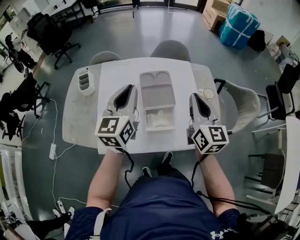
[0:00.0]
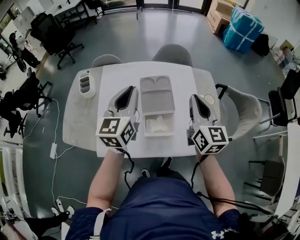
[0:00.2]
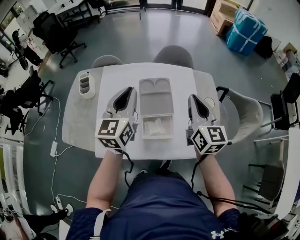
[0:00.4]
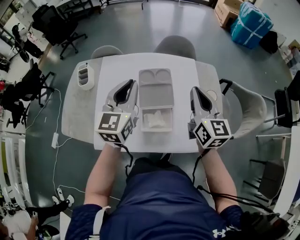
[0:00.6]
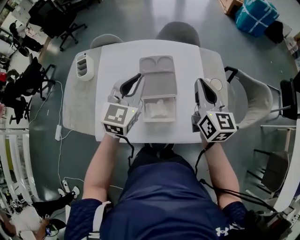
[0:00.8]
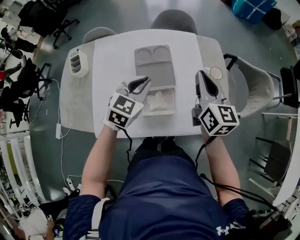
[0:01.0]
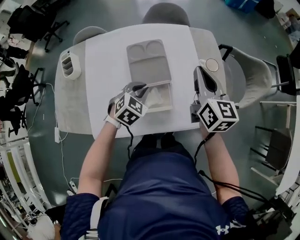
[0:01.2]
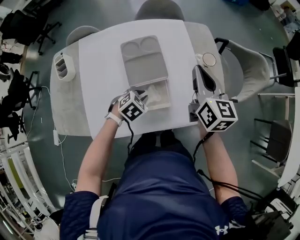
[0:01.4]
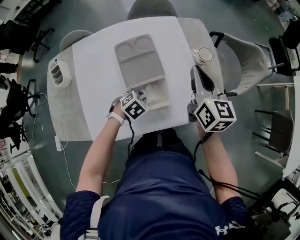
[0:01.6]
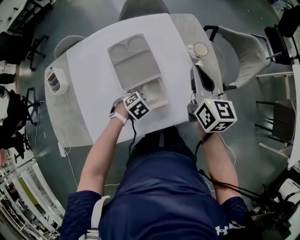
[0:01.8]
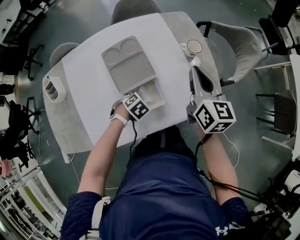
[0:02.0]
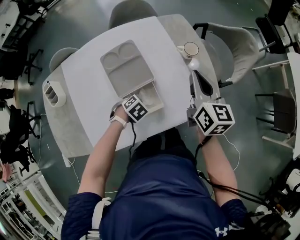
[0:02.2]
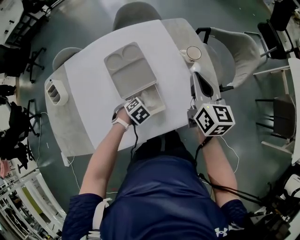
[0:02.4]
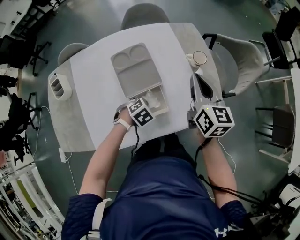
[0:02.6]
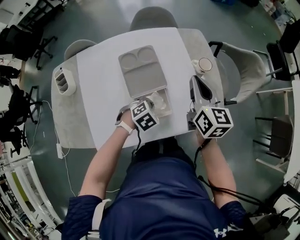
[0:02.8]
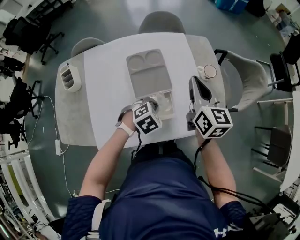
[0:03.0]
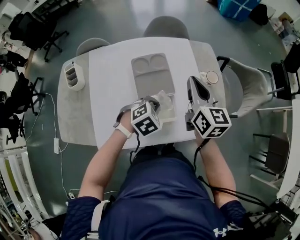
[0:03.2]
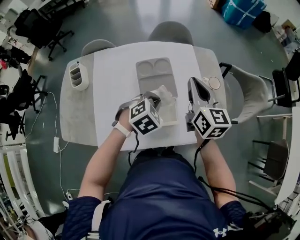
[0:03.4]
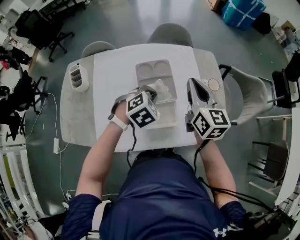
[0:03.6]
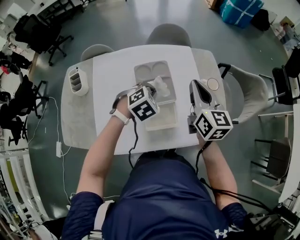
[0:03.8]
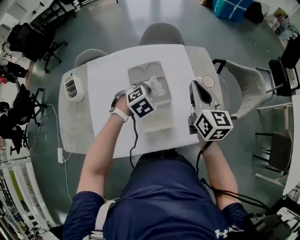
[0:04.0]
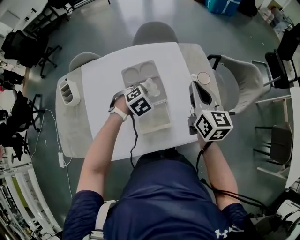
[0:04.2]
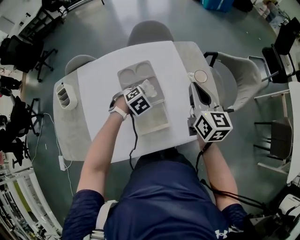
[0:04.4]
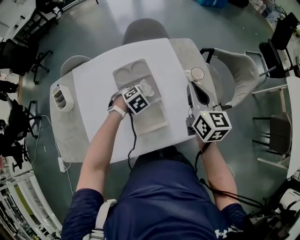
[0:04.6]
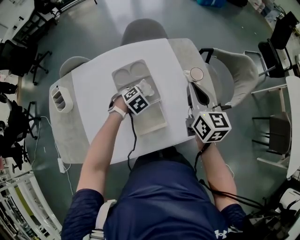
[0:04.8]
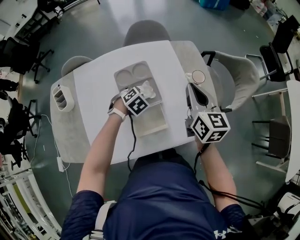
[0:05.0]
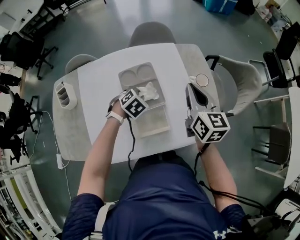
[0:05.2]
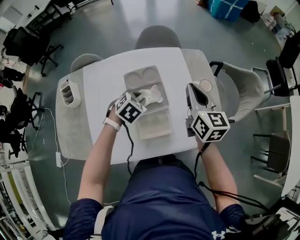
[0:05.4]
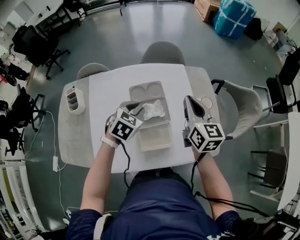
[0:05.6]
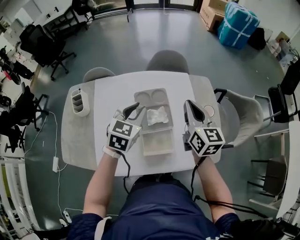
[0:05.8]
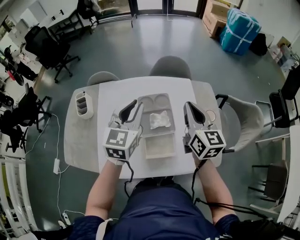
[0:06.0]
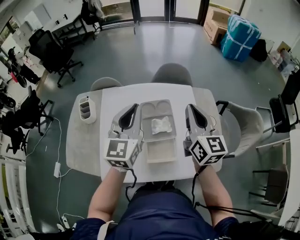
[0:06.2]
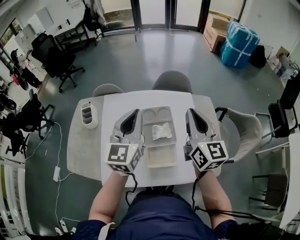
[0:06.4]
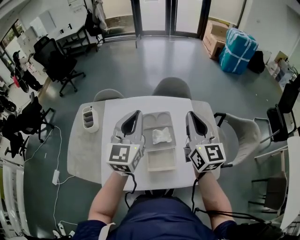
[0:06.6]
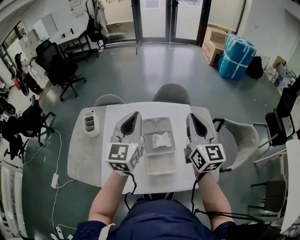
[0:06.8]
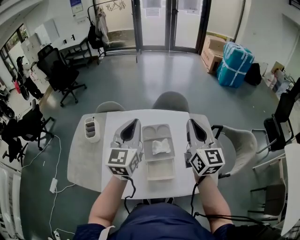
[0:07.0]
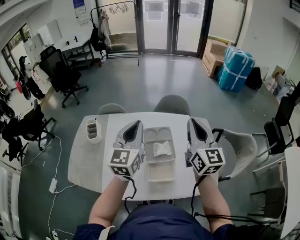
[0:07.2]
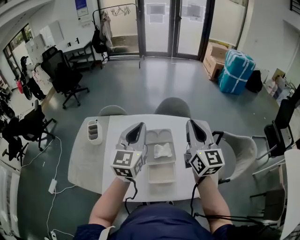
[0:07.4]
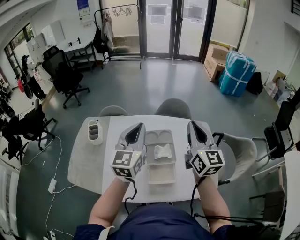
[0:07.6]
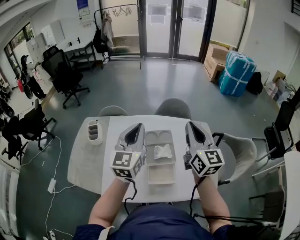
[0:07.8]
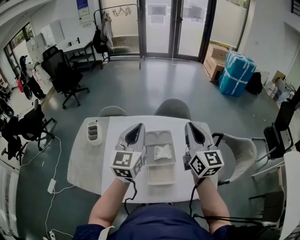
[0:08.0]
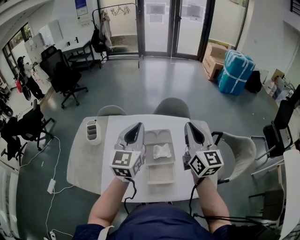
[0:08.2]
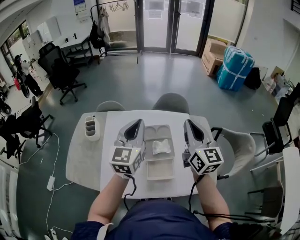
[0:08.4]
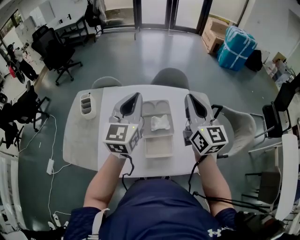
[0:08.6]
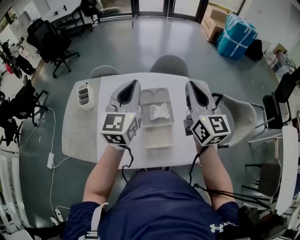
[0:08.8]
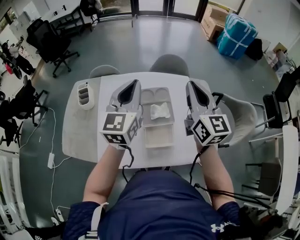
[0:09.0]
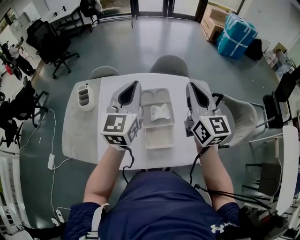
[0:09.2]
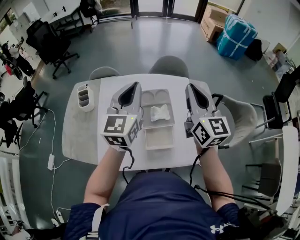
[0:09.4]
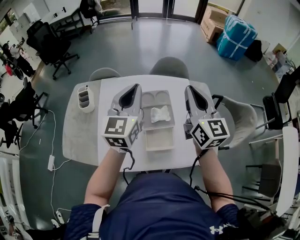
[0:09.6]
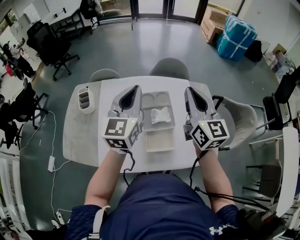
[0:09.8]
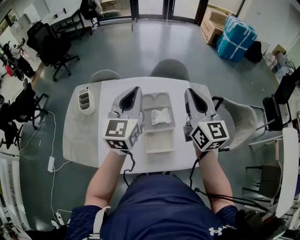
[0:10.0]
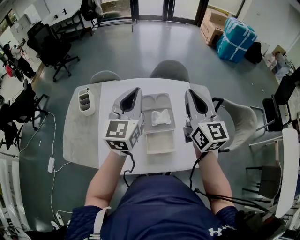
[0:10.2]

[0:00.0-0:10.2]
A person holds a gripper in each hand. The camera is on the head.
0:00.0 to 0:01.4: The right gripper shifts some 10 cm downward. Meanwhile the left gripper shifts about 35 cm downward, and angles its fingers downward, by approximately 60 degrees.
0:01.4 to 0:03.0: The left gripper changes place by approximately 5 cm.
0:03.0 to 0:04.4: The left gripper travels forward by some 10 cm, and reaches some 10 cm upward, then returns.
0:04.4 to 0:05.8: The right gripper moves to the left, roughly 10 cm, while the left gripper goes about 20 cm upward, angles its fingers upward, by about 40 degrees, and opens up.
0:05.8 to 0:07.2: The grippers both shift upward by about 15 cm. The left gripper tilts its fingers some 30 degrees upward, and closes its fingers.
0:07.2 to 0:10.2: The grippers move only a little.

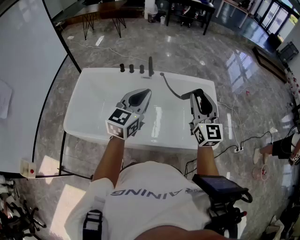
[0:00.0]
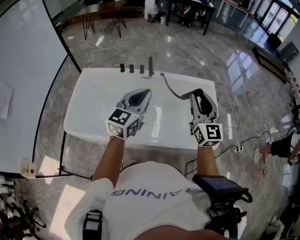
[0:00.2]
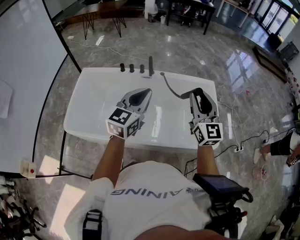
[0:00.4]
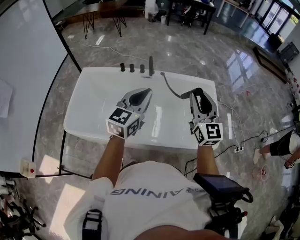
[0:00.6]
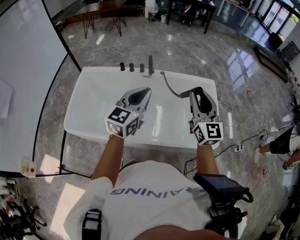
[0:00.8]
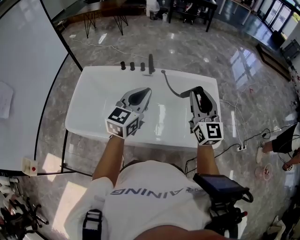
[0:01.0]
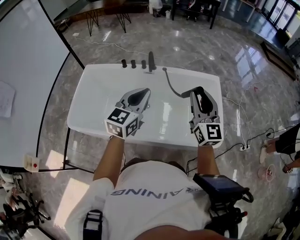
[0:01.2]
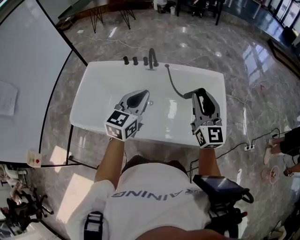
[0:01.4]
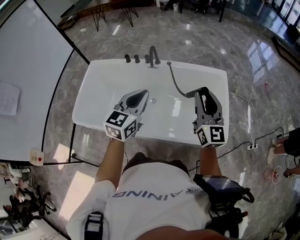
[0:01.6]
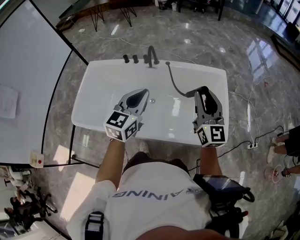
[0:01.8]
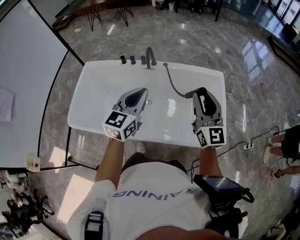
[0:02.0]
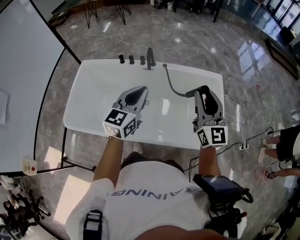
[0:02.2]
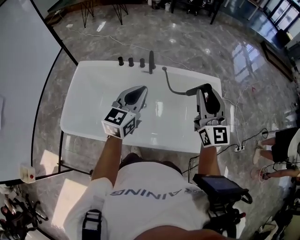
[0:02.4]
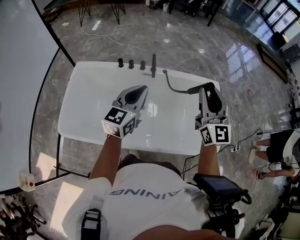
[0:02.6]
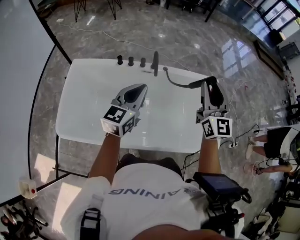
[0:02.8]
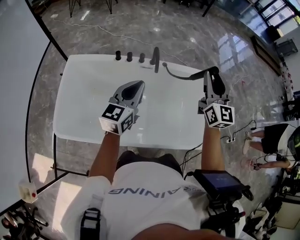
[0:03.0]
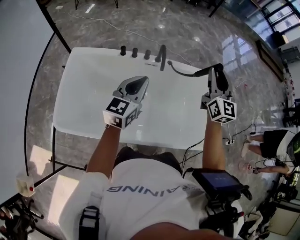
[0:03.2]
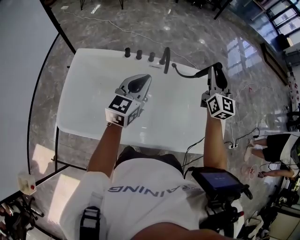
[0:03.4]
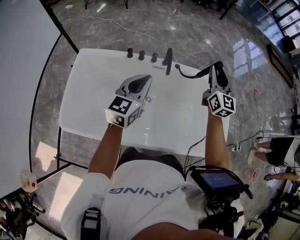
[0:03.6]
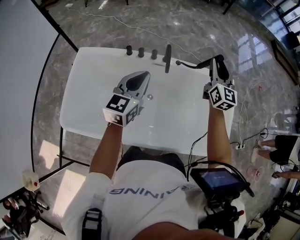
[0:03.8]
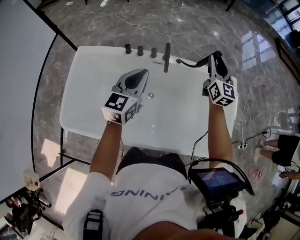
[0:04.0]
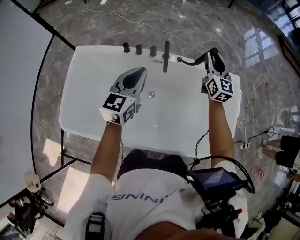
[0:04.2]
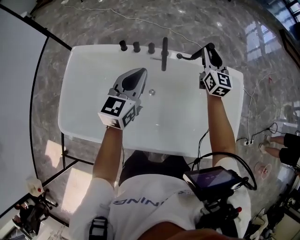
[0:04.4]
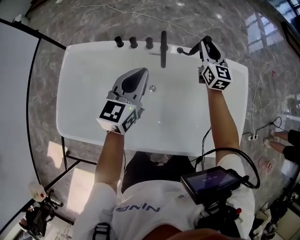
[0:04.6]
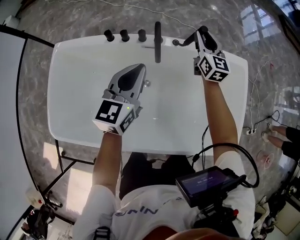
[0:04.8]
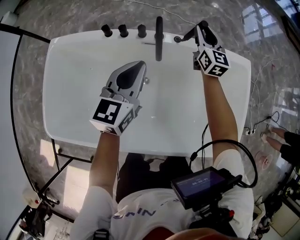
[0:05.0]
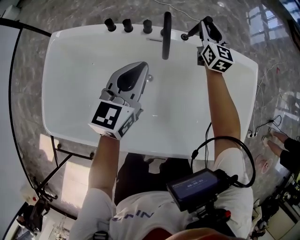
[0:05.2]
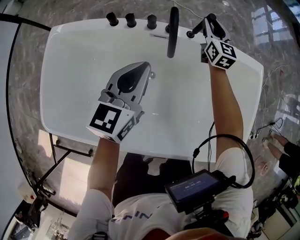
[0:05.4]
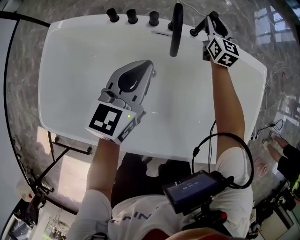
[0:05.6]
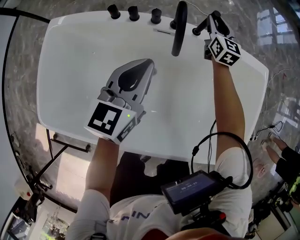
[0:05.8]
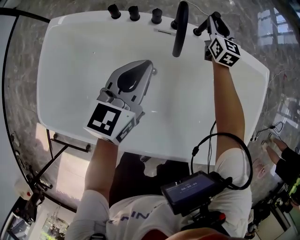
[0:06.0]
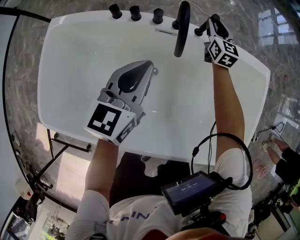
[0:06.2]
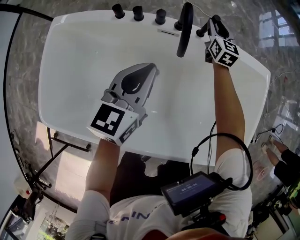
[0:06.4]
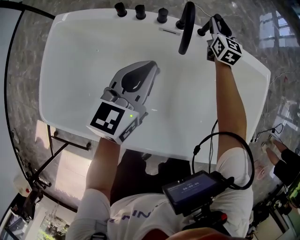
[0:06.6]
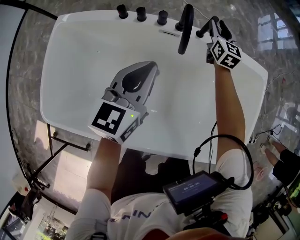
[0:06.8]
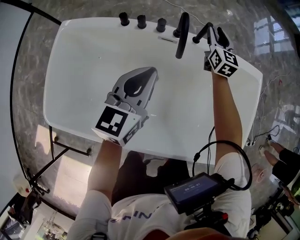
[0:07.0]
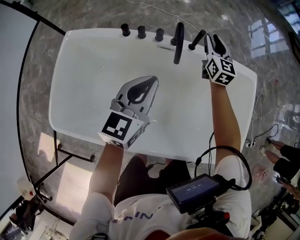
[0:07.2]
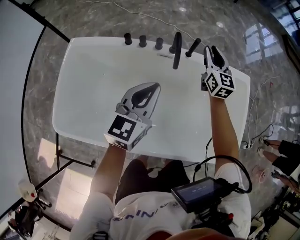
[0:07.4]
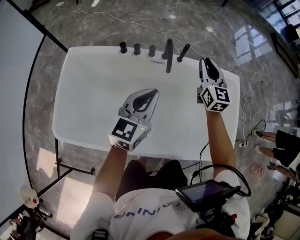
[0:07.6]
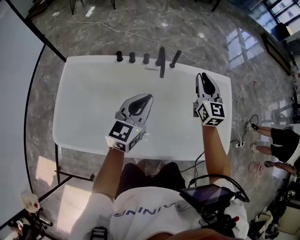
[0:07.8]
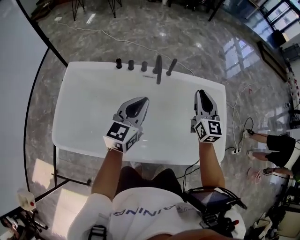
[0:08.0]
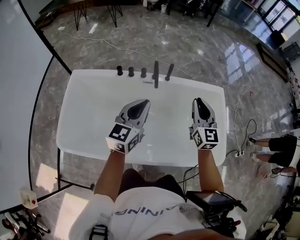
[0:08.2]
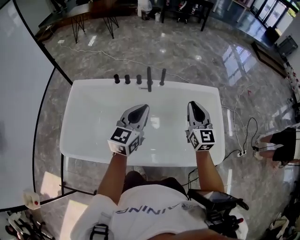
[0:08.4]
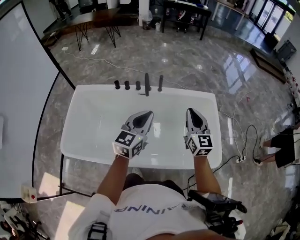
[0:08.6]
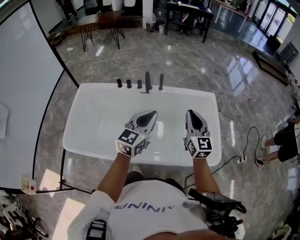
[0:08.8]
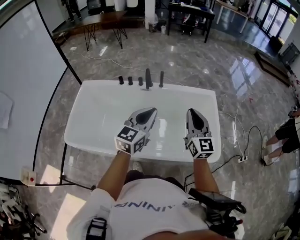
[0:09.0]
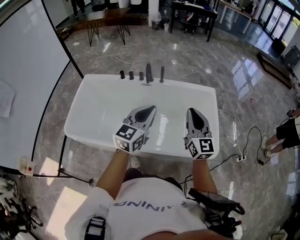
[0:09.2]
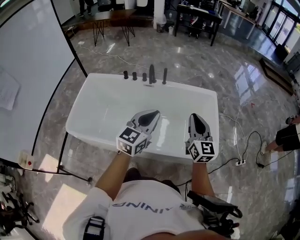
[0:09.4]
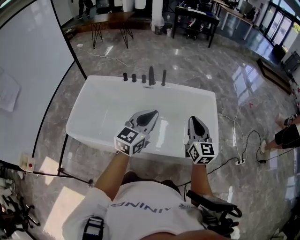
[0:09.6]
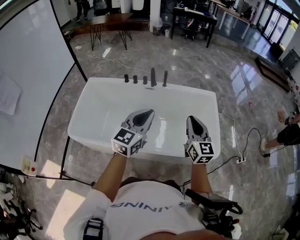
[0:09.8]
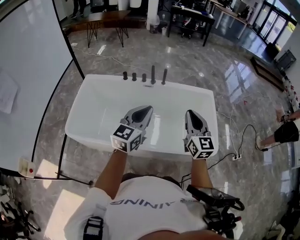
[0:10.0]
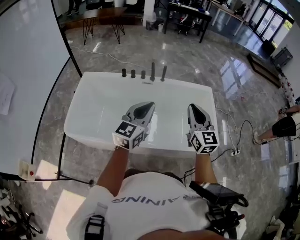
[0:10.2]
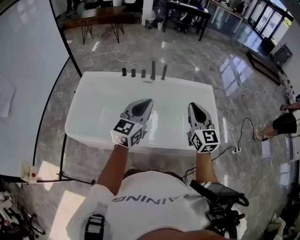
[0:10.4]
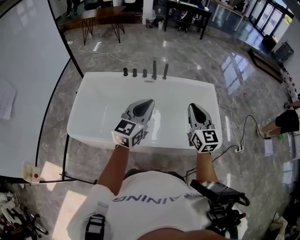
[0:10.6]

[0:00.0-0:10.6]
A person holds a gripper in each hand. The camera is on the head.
0:00.0 to 0:01.6: The two grippers go some 10 cm to the right.
0:01.6 to 0:03.0: The two grippers go some 25 cm to the left and forward.
0:03.0 to 0:04.6: The left gripper goes roughly 20 cm forward and downward. The right gripper is displaced forward and downward by about 40 cm.
0:04.6 to 0:06.0: The right gripper moves downward and forward, some 25 cm. Meanwhile the left gripper heads downward, covering about 15 cm.
0:06.0 to 0:07.6: The right gripper is displaced upward and backward by roughly 35 cm, while the left gripper travels upward and backward by approximately 20 cm.
0:07.6 to 0:09.0: The right gripper moves backward, to the right and upward, about 40 cm. The left gripper is displaced to the right, backward and upward by some 30 cm.
0:09.0 to 0:10.6: The right gripper travels backward and to the left by some 10 cm. Meanwhile the left gripper shifts some 10 cm to the left and backward.

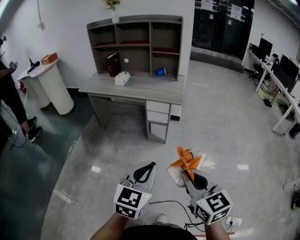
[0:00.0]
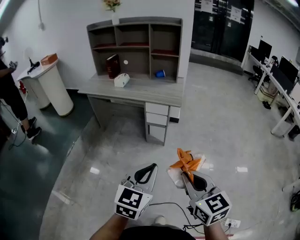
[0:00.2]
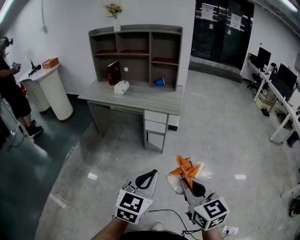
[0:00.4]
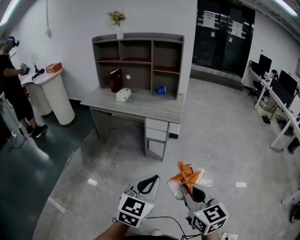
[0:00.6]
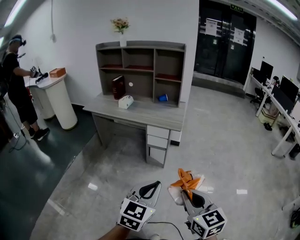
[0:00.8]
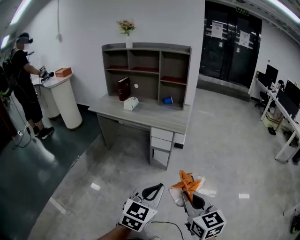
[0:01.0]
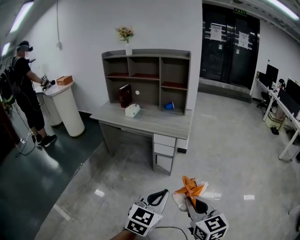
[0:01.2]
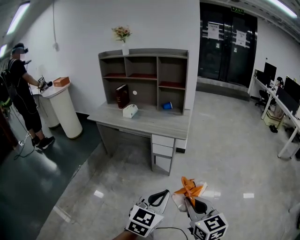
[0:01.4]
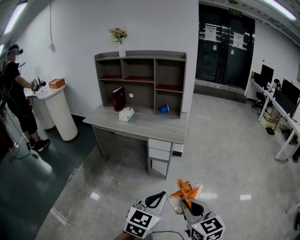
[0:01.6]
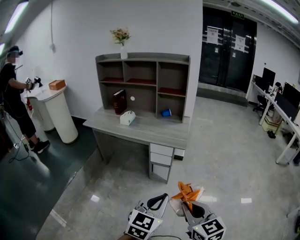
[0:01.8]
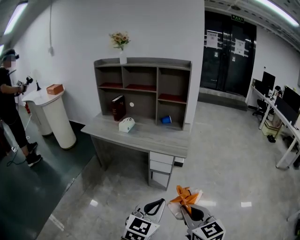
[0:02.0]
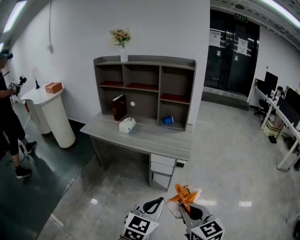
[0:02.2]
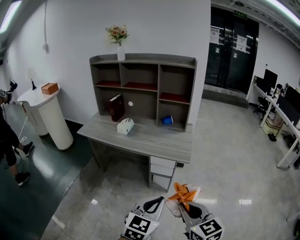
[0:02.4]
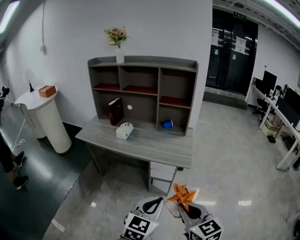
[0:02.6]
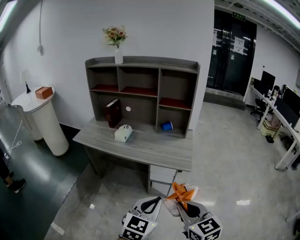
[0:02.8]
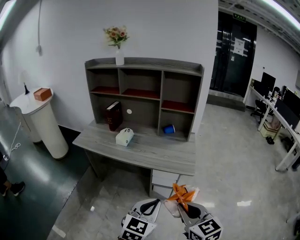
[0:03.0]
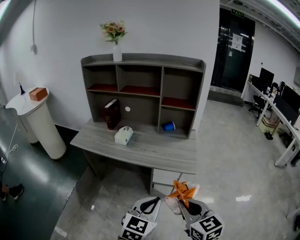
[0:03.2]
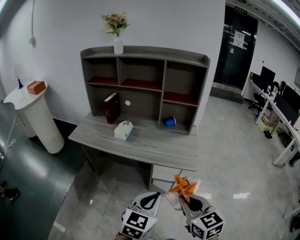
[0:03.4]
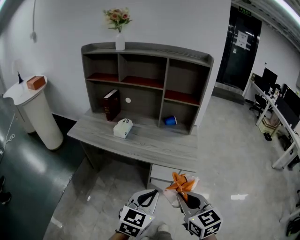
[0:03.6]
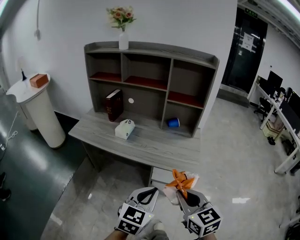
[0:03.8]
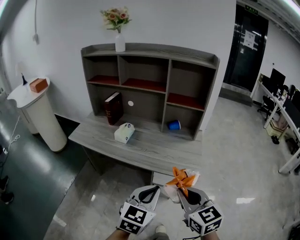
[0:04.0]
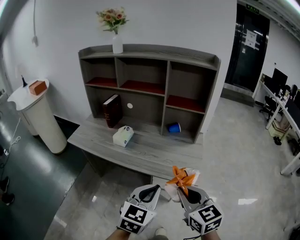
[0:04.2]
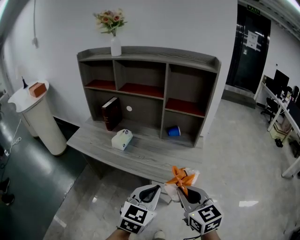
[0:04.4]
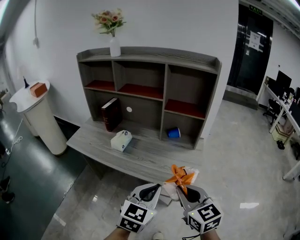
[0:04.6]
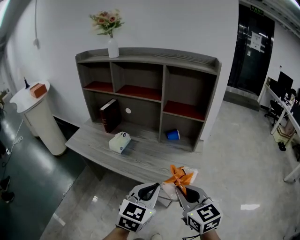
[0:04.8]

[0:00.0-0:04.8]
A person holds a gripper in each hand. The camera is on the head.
0:00.0 to 0:01.6: The grippers both shift forward by about 5 cm.
0:01.6 to 0:03.2: Both grippers travel together forward and to the left, about 30 cm.
0:03.2 to 0:04.8: Both grippers travel together forward, some 20 cm.
